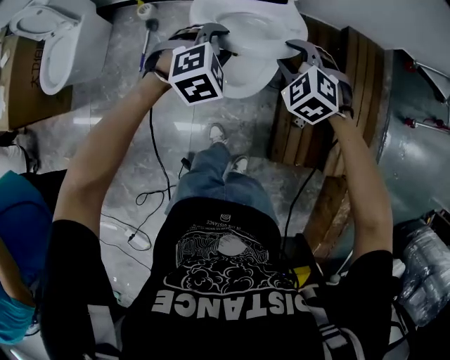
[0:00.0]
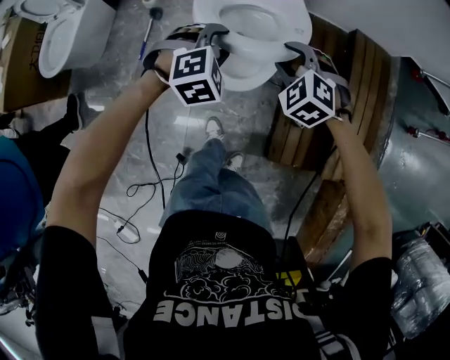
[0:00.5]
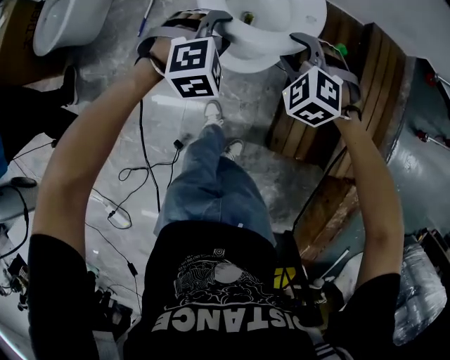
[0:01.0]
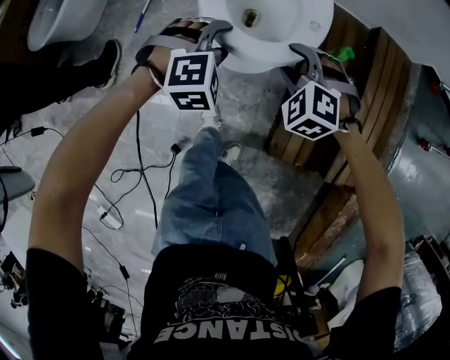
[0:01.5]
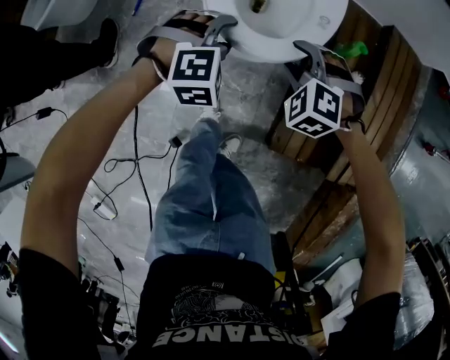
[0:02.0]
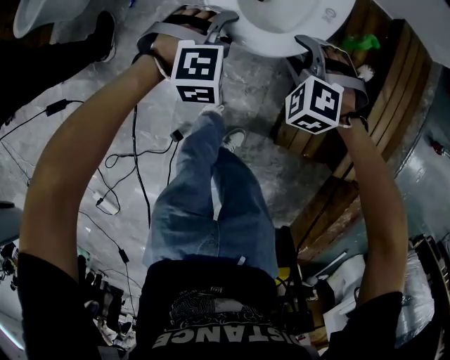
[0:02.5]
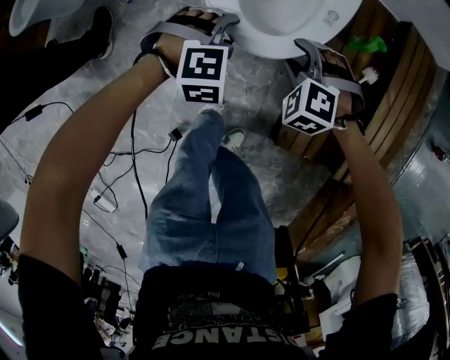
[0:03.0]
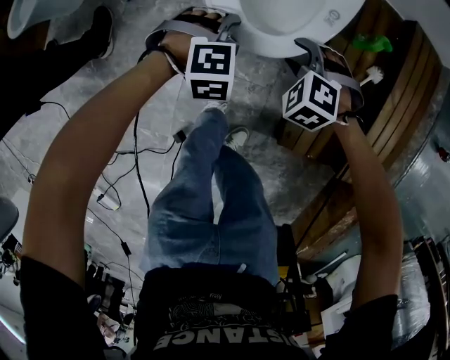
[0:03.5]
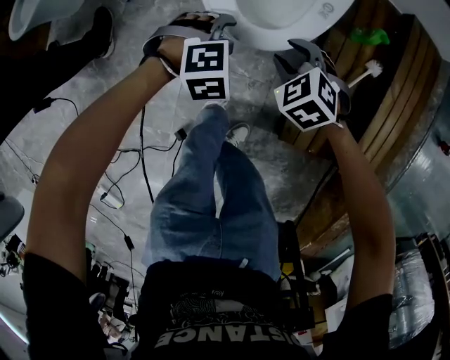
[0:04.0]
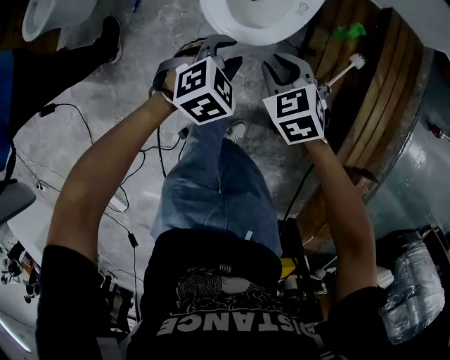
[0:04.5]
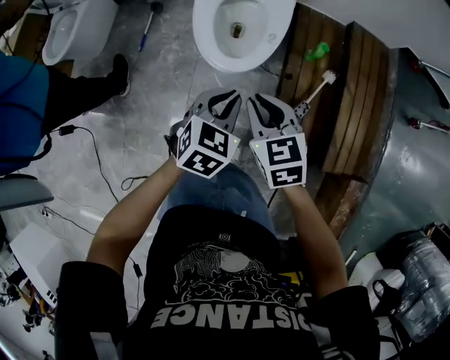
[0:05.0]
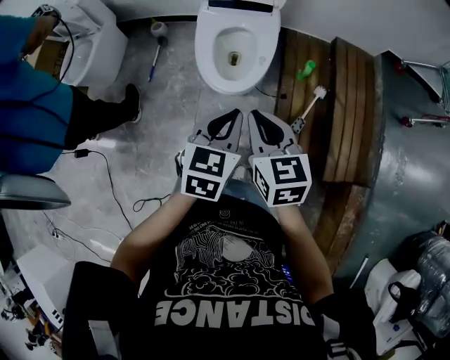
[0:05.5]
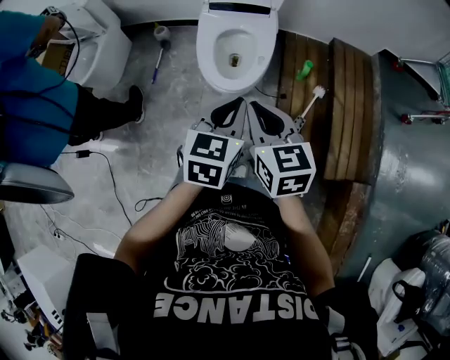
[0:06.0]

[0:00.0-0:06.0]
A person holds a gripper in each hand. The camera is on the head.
0:00.0 to 0:02.0: Both grippers travel together downward and backward, approximately 25 cm.
0:02.0 to 0:04.0: The two grippers go roughly 10 cm downward. The right gripper swivels about 30 degrees.
0:04.0 to 0:06.0: The right gripper goes about 50 cm upward and backward, tilts its fingers roughly 40 degrees upward, and closes its fingers. The left gripper shifts roughly 40 cm upward, tips its fingers upward by about 40 degrees, and closes its fingers.

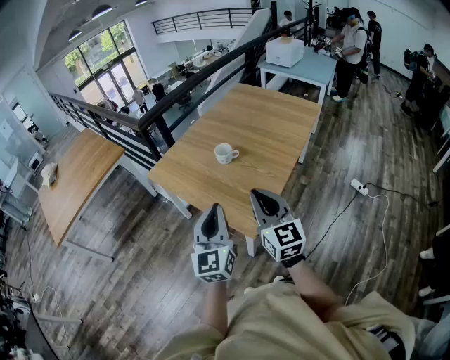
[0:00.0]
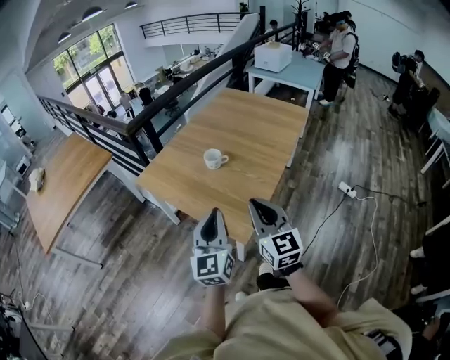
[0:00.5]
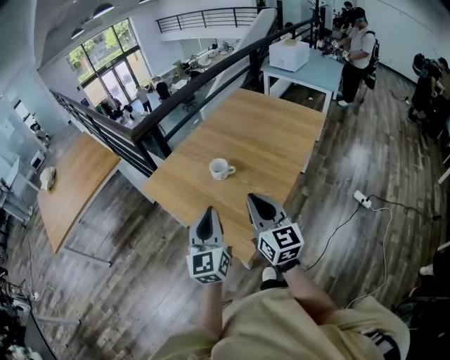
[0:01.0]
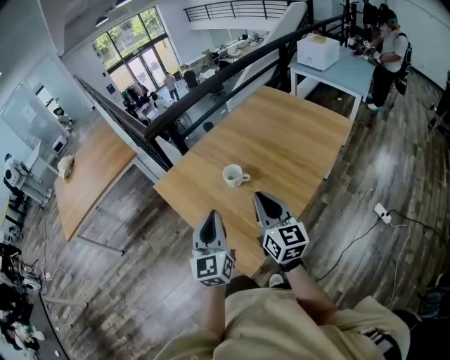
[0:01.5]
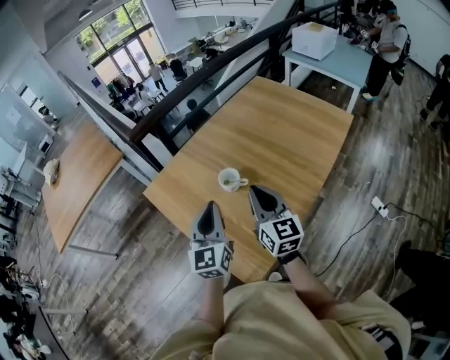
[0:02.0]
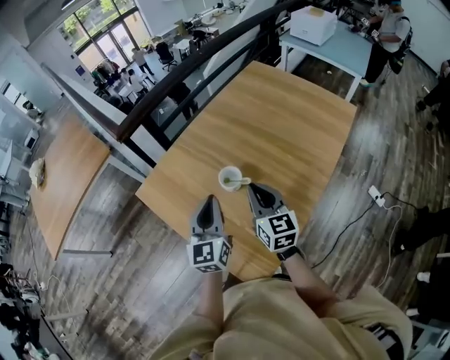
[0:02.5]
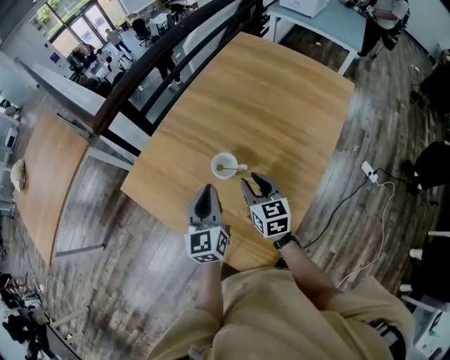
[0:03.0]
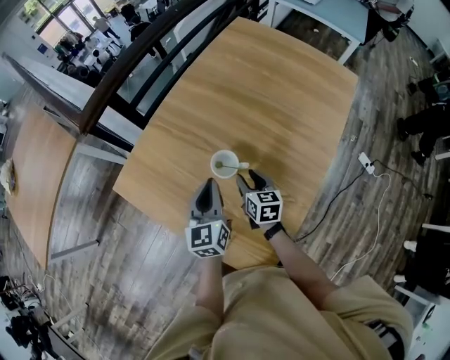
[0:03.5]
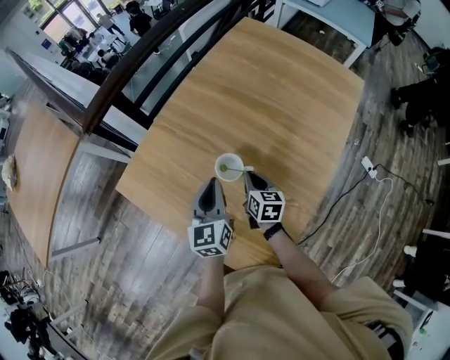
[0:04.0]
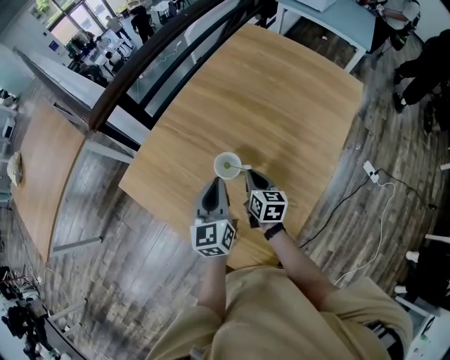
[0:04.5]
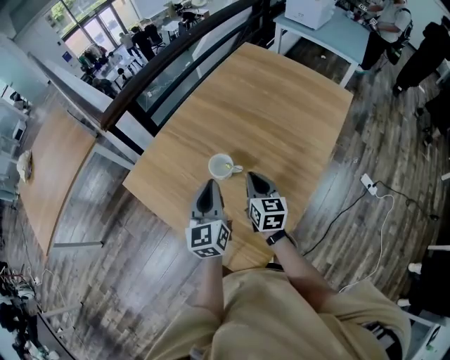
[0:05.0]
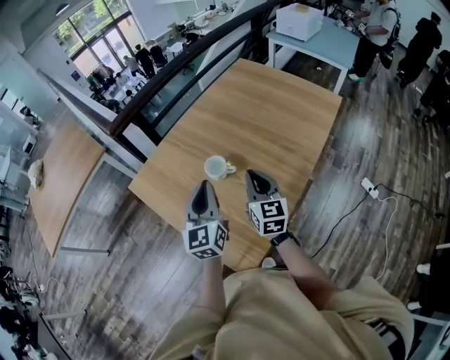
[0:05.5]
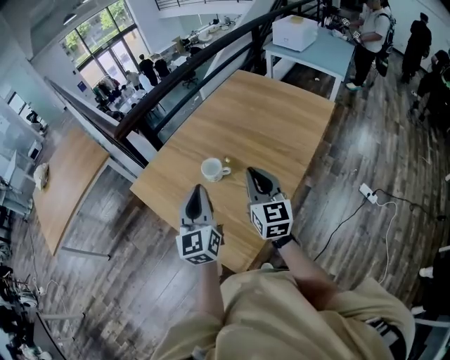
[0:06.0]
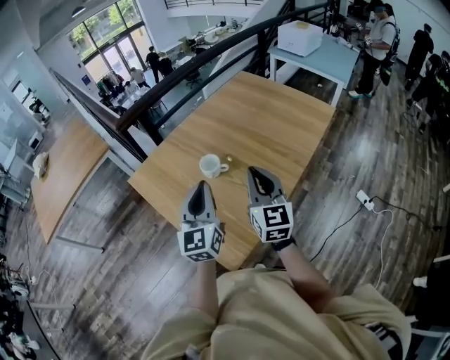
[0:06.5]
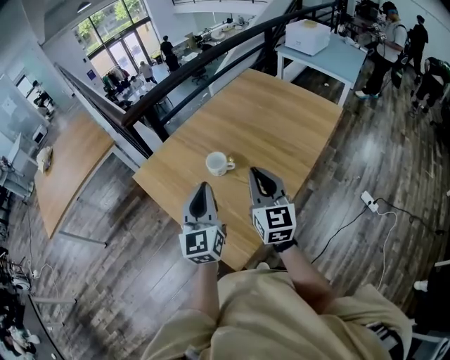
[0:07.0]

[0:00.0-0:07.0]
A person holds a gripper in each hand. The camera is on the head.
0:00.0 to 0:02.0: Both grippers move forward, about 30 cm.
0:02.0 to 0:03.5: The left gripper is displaced forward and downward by approximately 20 cm, and changes its angle by roughly 20 degrees. The right gripper moves downward and forward, about 30 cm, angles its fingers downward, by some 30 degrees, and opens.
0:03.5 to 0:05.0: The left gripper is displaced upward and backward by approximately 10 cm; the right gripper is displaced upward by roughly 10 cm, and closes.
0:05.0 to 0:07.0: The left gripper moves backward and upward, roughly 15 cm. Meanwhile the right gripper travels upward and backward by roughly 25 cm, and turns by about 30 degrees.

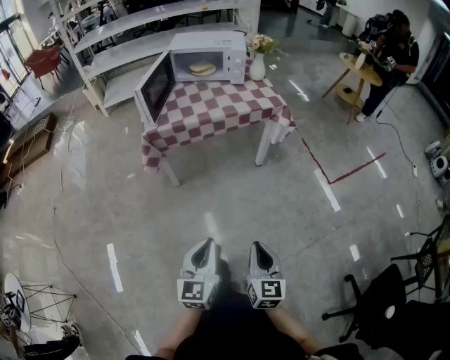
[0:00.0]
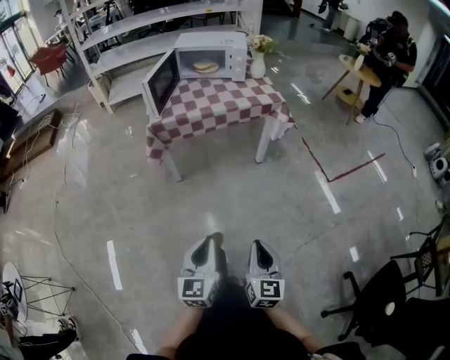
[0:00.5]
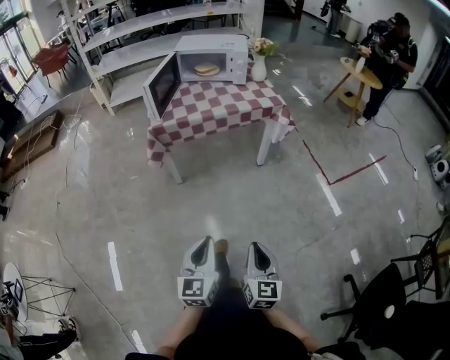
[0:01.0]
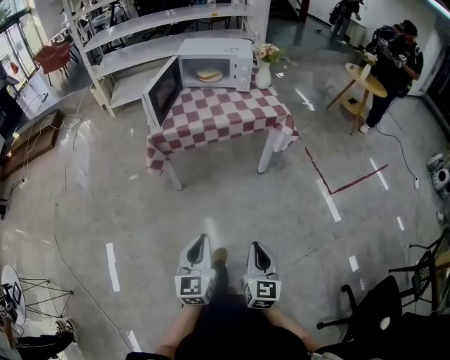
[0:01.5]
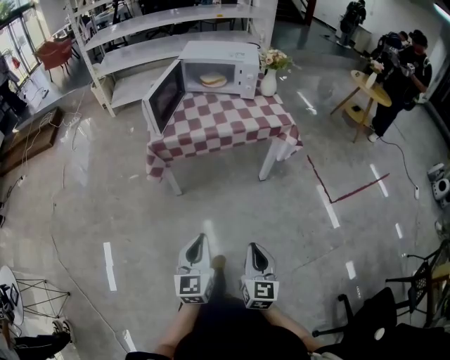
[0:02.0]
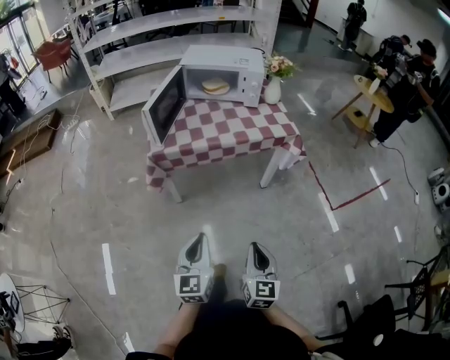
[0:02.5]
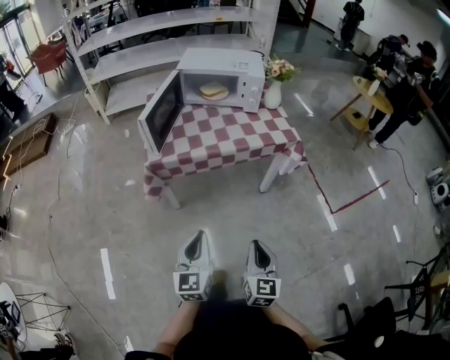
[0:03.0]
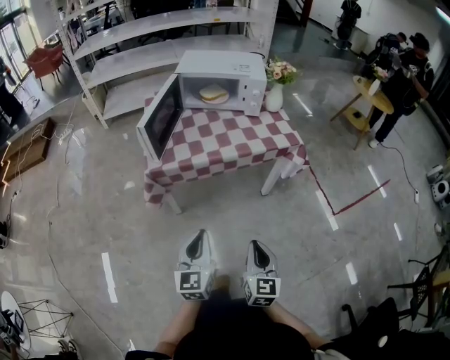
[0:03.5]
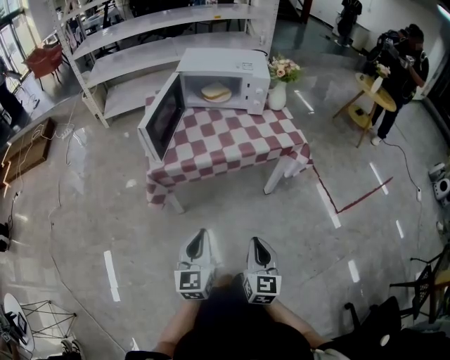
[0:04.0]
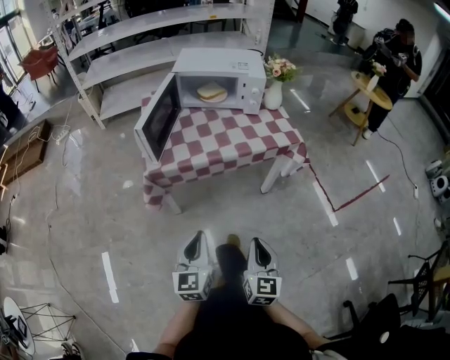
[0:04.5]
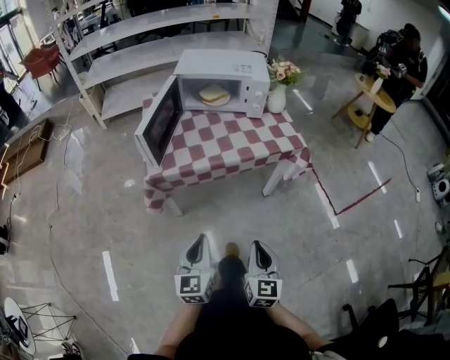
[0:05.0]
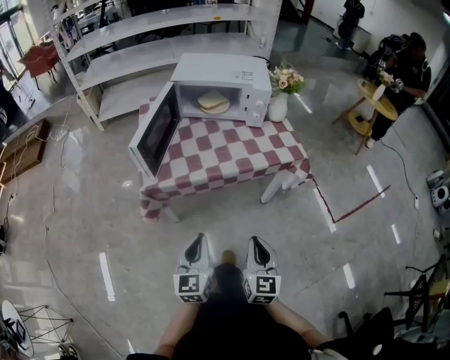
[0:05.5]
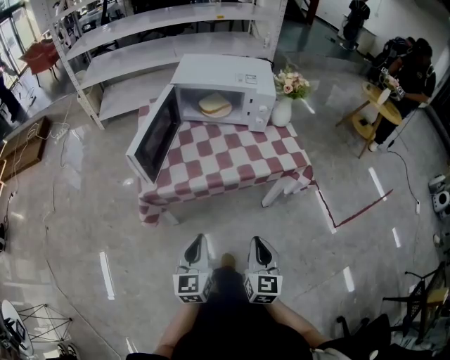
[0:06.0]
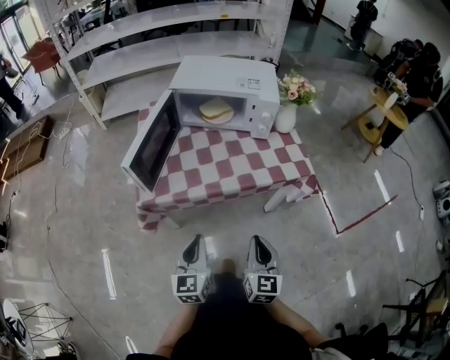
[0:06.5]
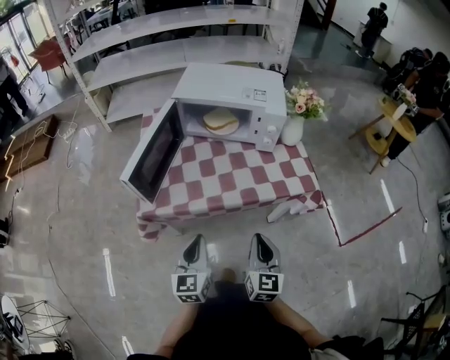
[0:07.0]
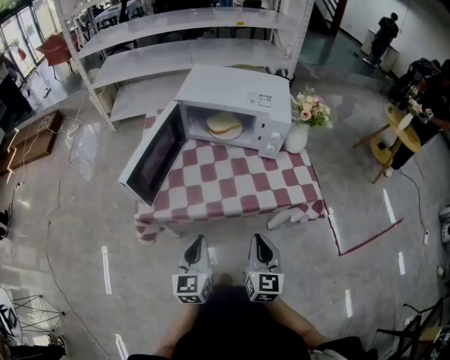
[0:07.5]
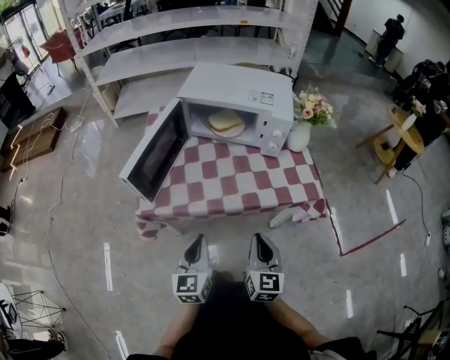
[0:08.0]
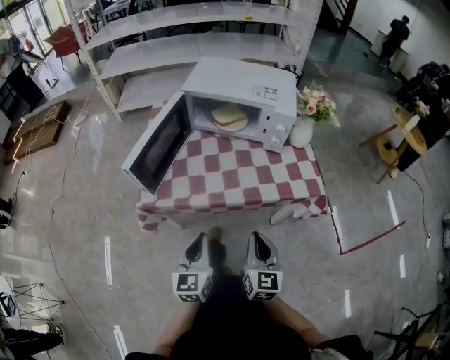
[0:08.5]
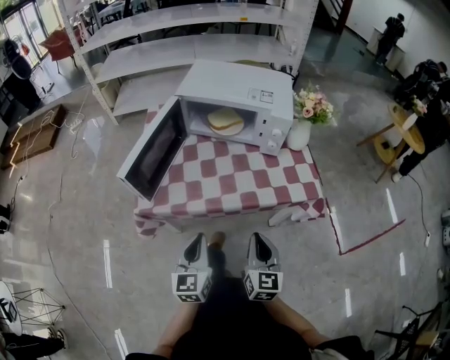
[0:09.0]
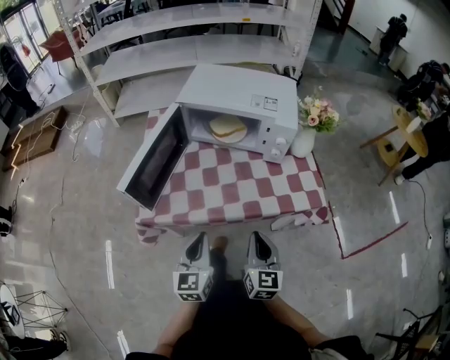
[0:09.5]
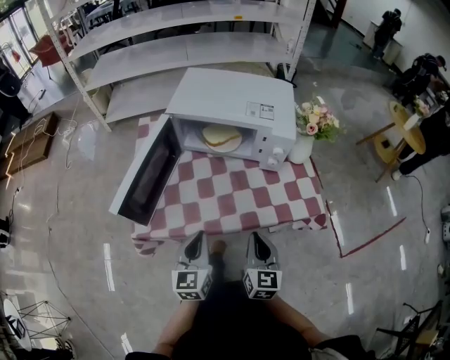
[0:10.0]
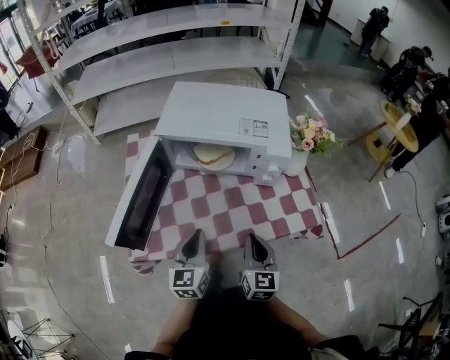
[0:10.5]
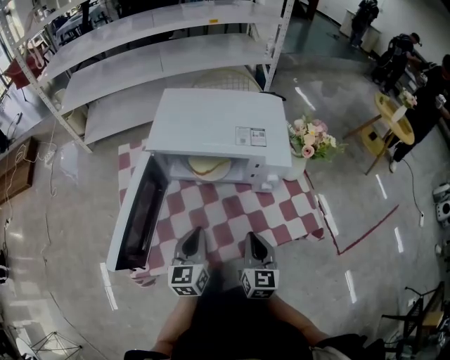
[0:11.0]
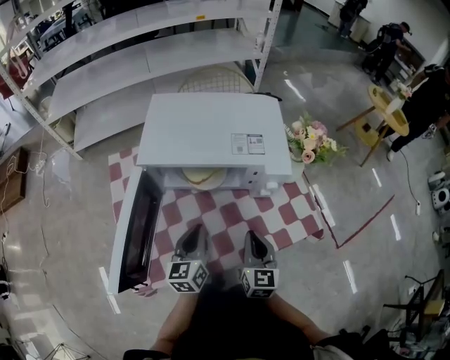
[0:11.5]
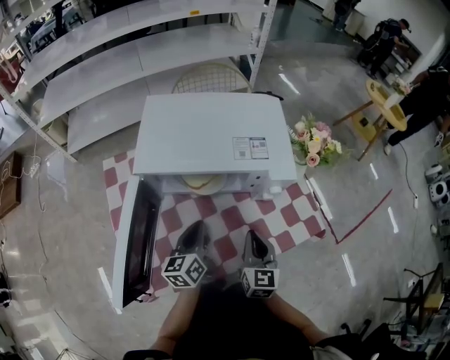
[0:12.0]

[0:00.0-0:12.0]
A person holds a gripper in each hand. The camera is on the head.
0:00.0 to 0:02.0: The two grippers go about 5 cm forward.
0:02.0 to 0:04.0: Both grippers move forward, roughly 15 cm.
0:04.0 to 0:06.0: Both grippers travel together forward, about 10 cm.
0:06.0 to 0:08.0: The two grippers go approximately 15 cm forward.
0:08.0 to 0:10.0: The grippers both shift forward by approximately 10 cm.
0:10.0 to 0:12.0: Both grippers move forward, approximately 20 cm. The left gripper swivels some 30 degrees.

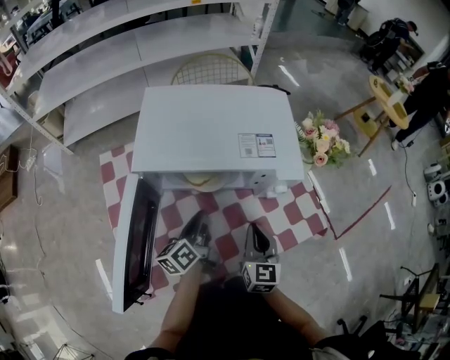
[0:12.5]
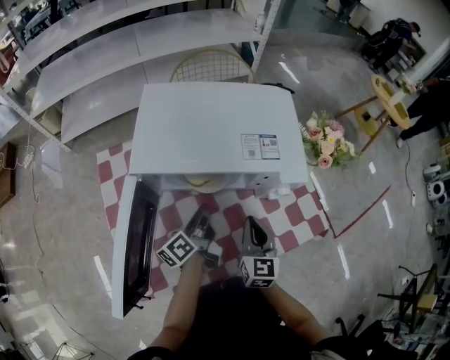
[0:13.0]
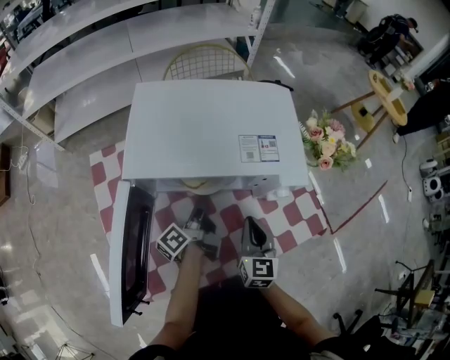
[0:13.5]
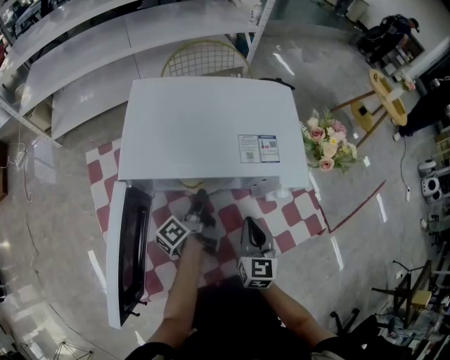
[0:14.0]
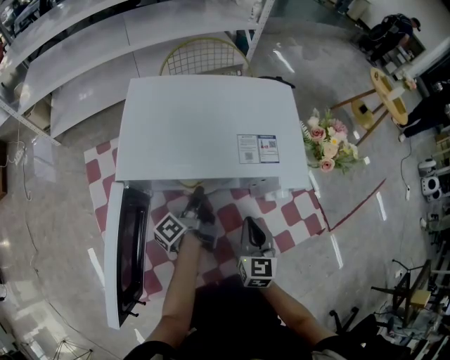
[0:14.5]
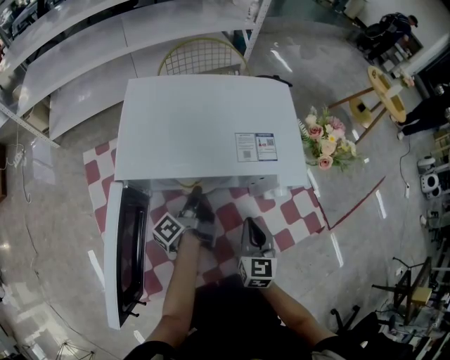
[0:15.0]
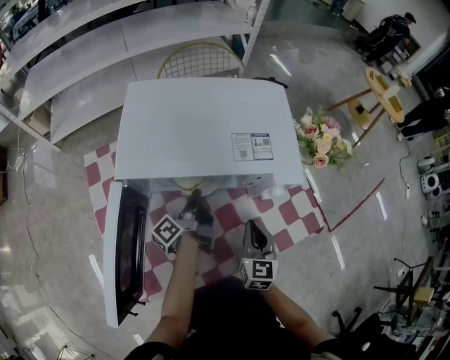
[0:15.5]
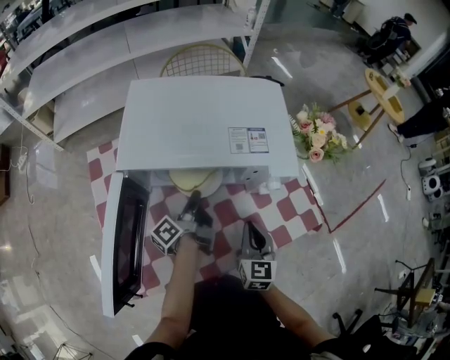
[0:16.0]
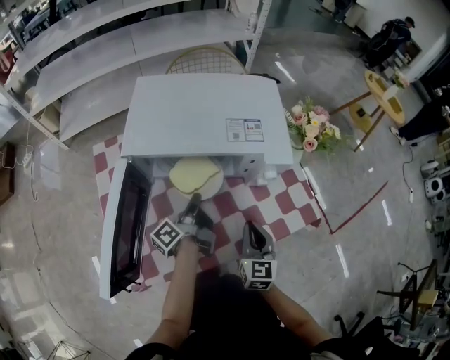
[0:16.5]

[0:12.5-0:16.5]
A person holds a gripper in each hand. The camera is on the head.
0:12.5 to 0:14.5: The left gripper moves forward, approximately 10 cm, and swivels some 30 degrees.
0:14.5 to 0:16.5: The two grippers go roughly 5 cm backward.
